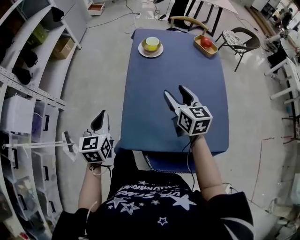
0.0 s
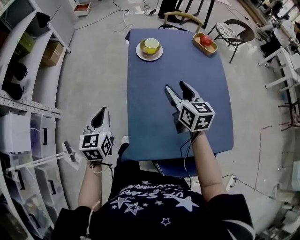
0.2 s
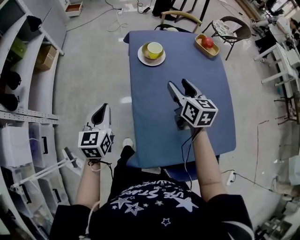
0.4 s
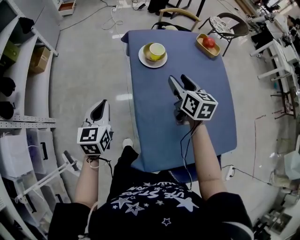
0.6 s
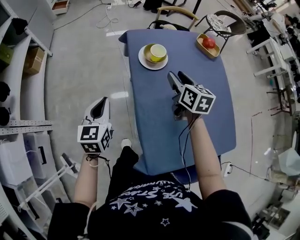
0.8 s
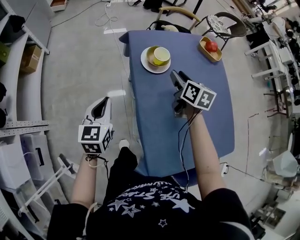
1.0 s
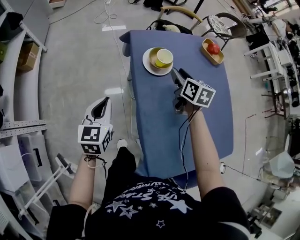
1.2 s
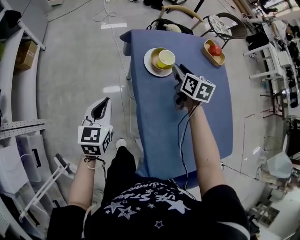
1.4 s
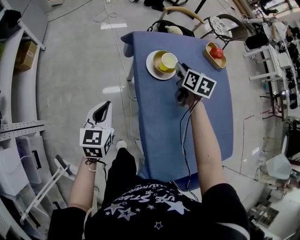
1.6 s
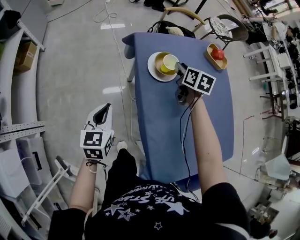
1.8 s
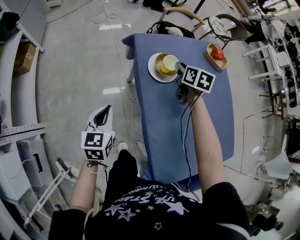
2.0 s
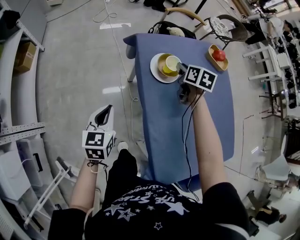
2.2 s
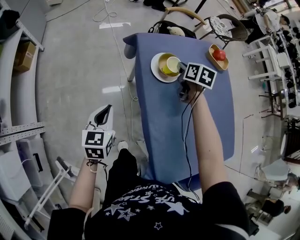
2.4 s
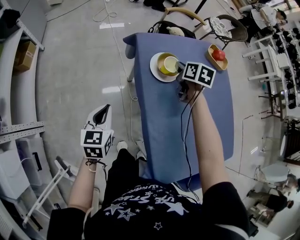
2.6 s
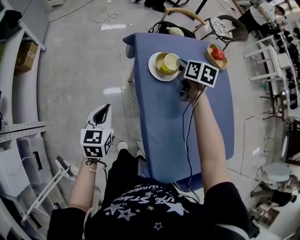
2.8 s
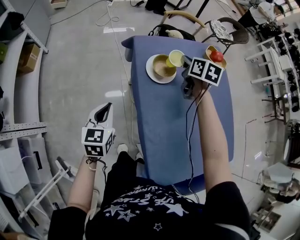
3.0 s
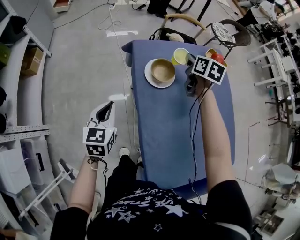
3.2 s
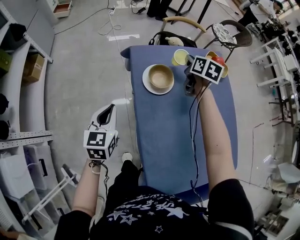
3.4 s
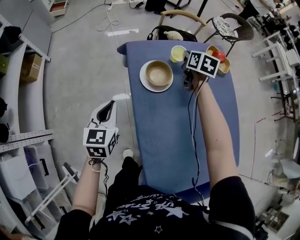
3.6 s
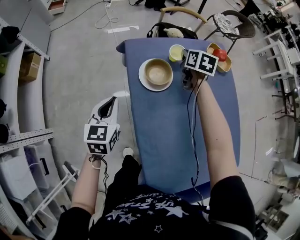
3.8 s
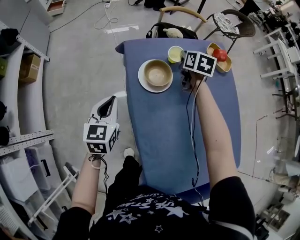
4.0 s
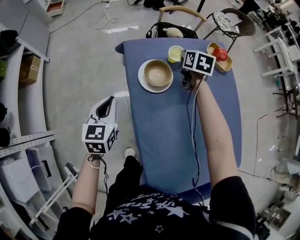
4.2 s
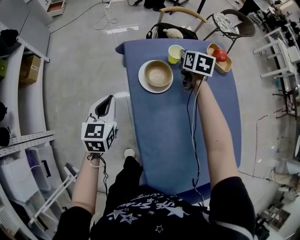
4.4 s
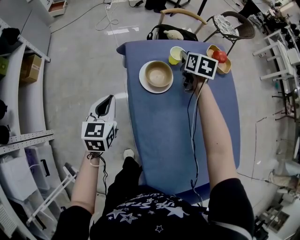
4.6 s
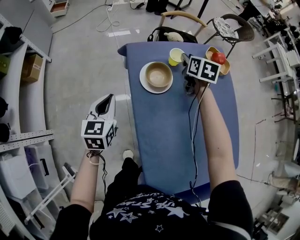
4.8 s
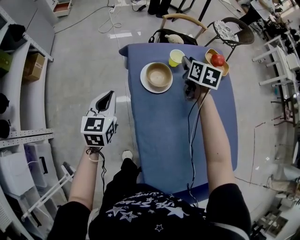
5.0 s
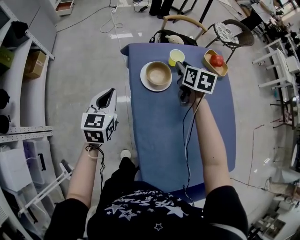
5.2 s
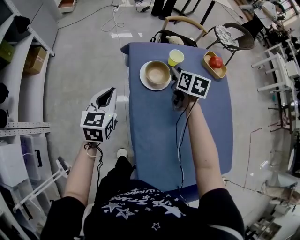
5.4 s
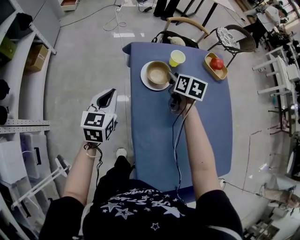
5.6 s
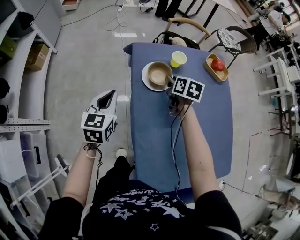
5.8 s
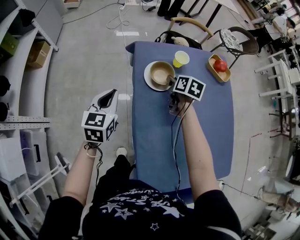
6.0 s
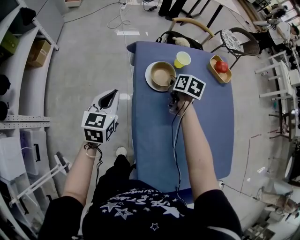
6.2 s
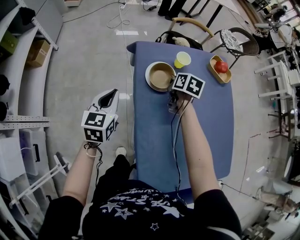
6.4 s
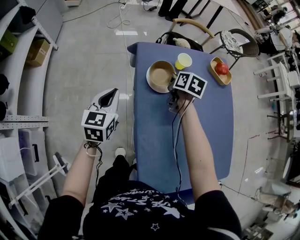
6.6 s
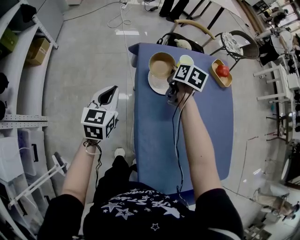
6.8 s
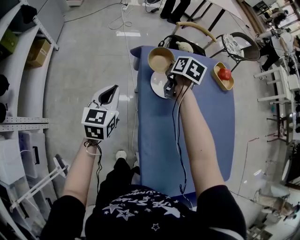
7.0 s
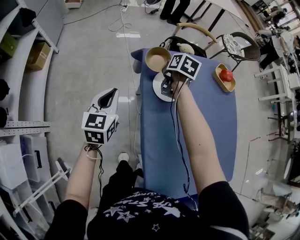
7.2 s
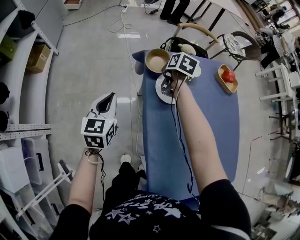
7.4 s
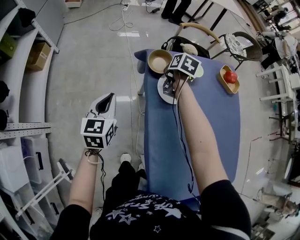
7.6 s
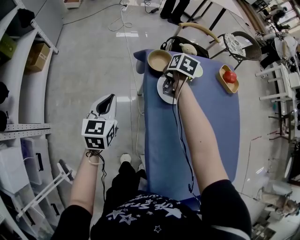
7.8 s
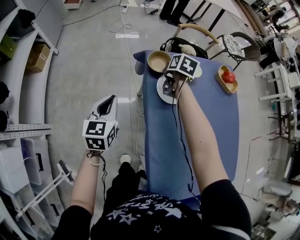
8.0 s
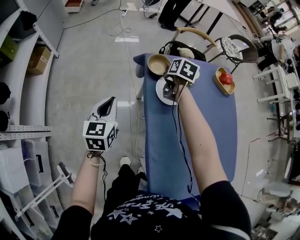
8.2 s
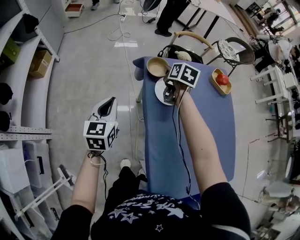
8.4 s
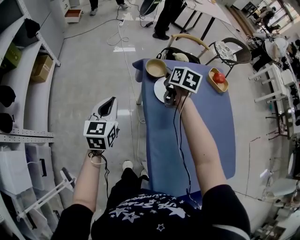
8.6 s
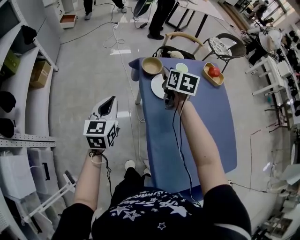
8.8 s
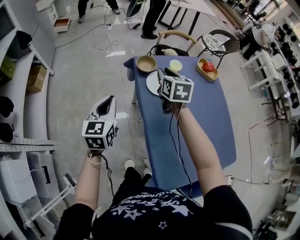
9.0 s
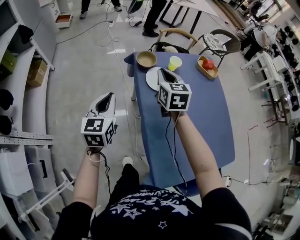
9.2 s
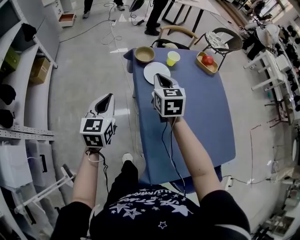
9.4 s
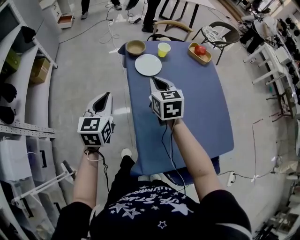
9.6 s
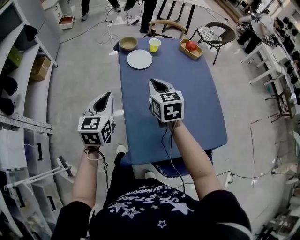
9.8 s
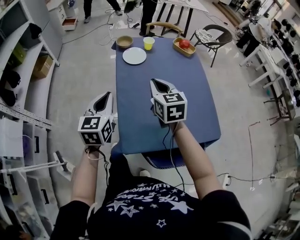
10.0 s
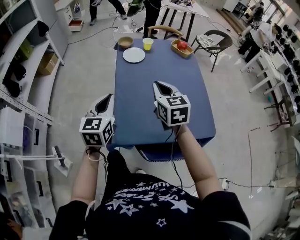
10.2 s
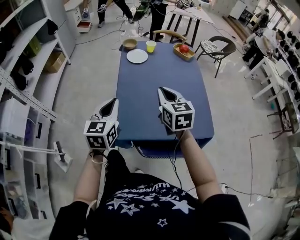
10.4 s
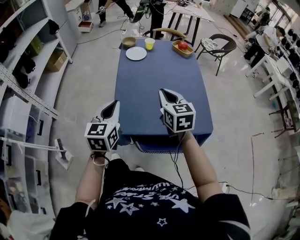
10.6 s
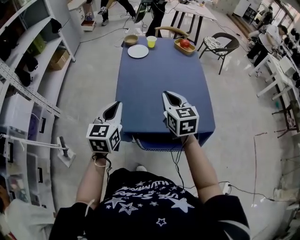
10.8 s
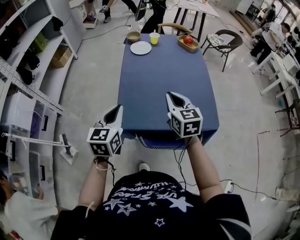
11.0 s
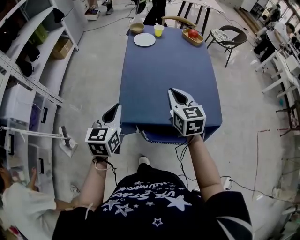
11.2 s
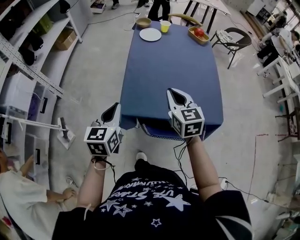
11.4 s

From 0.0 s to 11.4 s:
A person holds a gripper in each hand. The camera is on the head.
From 0.0 s to 1.4 s: The right gripper shifts by some 30 cm, turns by some 30 degrees, and closes its fingers. Meanwhile the left gripper ends up about 30 cm from where it was, and rotates roughly 20 degrees.
From 1.4 s to 2.8 s: The right gripper closes.
From 2.8 s to 4.2 s: The two grippers go some 15 cm forward and to the right.
From 4.2 s to 5.6 s: The right gripper moves backward, some 10 cm, and opens its fingers.
From 5.6 s to 7.2 s: The left gripper goes roughly 5 cm to the left. Meanwhile the right gripper travels forward and to the left by about 15 cm, and closes up.
From 7.2 s to 8.6 s: The left gripper shifts by approximately 5 cm; the right gripper moves upward and backward, approximately 10 cm, and opens.
From 8.6 s to 10.0 s: The left gripper is displaced backward and to the right by about 35 cm. Meanwhile the right gripper goes some 40 cm backward, changes its angle by about 30 degrees, and closes.
From 10.0 s to 11.4 s: The two grippers go approximately 20 cm backward.

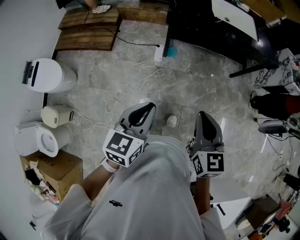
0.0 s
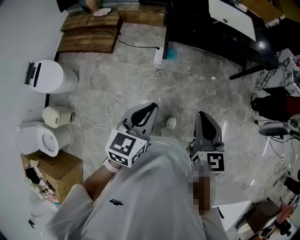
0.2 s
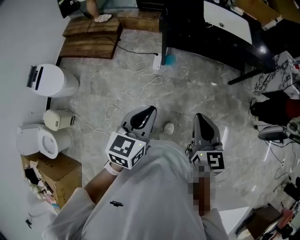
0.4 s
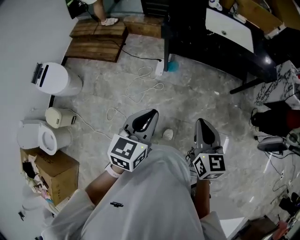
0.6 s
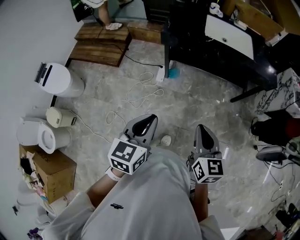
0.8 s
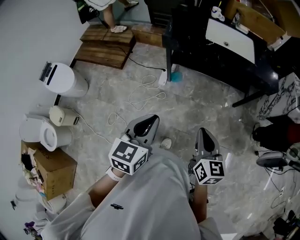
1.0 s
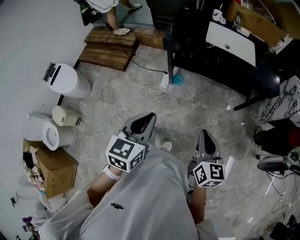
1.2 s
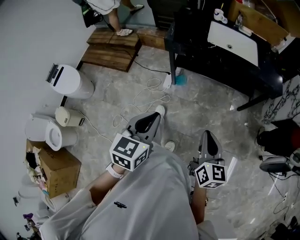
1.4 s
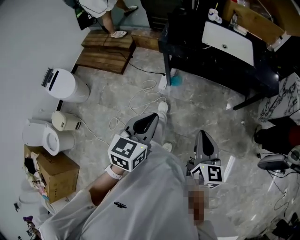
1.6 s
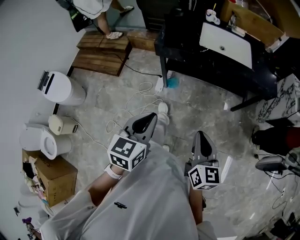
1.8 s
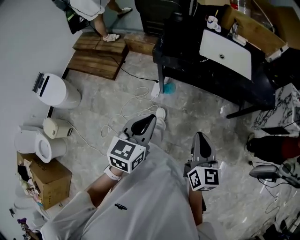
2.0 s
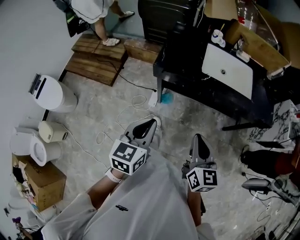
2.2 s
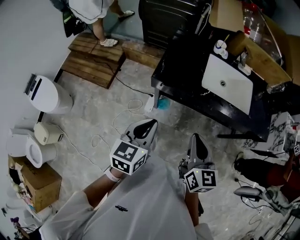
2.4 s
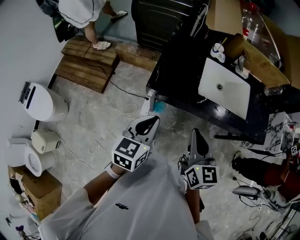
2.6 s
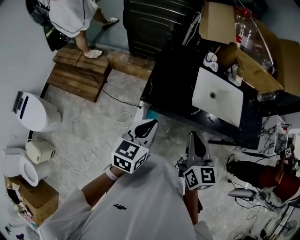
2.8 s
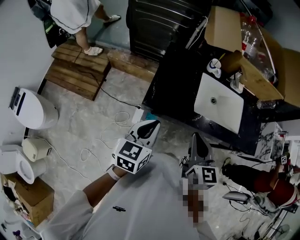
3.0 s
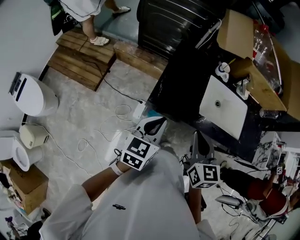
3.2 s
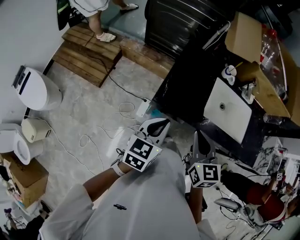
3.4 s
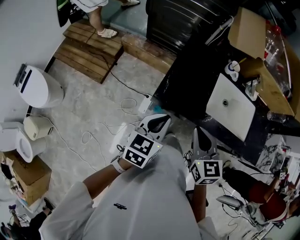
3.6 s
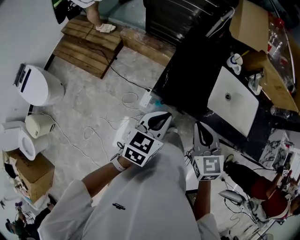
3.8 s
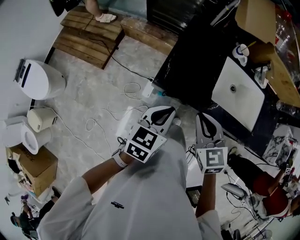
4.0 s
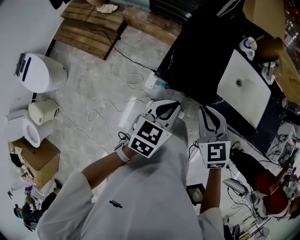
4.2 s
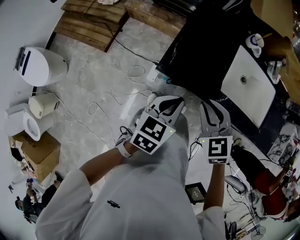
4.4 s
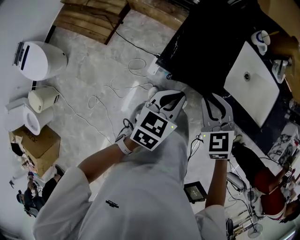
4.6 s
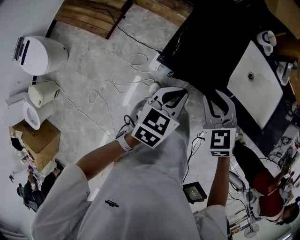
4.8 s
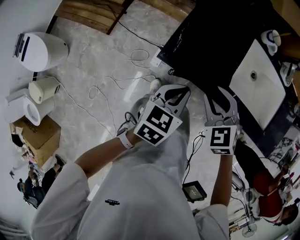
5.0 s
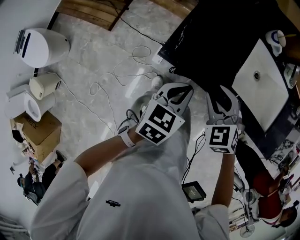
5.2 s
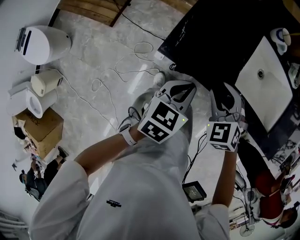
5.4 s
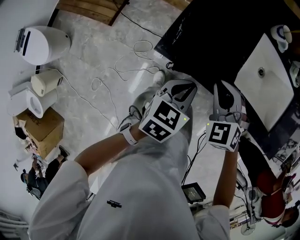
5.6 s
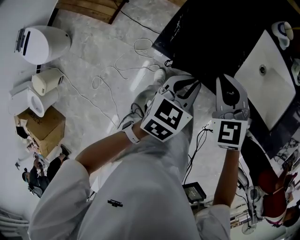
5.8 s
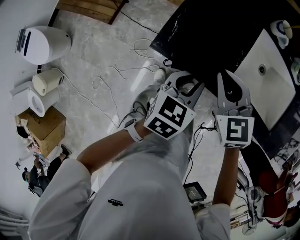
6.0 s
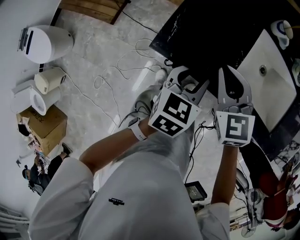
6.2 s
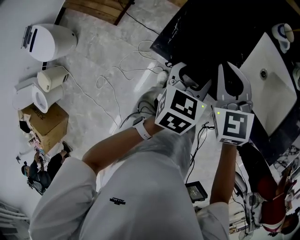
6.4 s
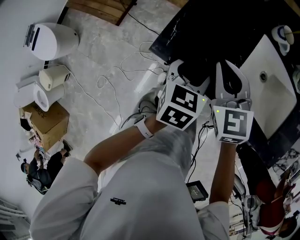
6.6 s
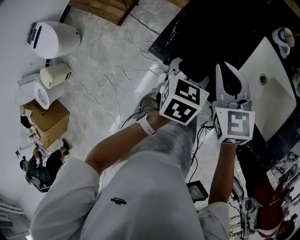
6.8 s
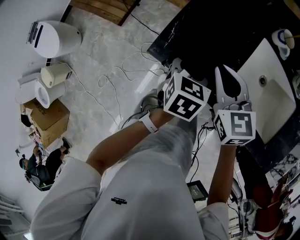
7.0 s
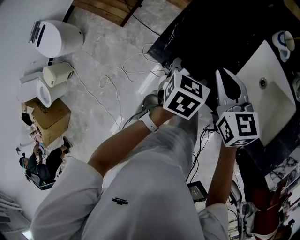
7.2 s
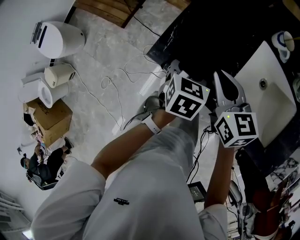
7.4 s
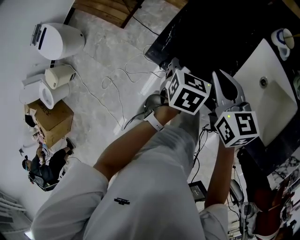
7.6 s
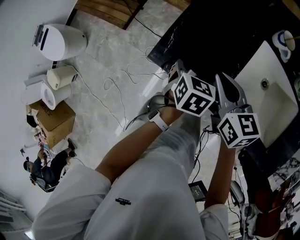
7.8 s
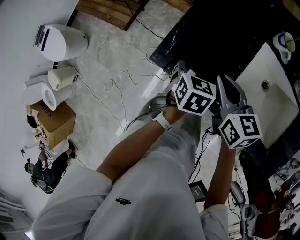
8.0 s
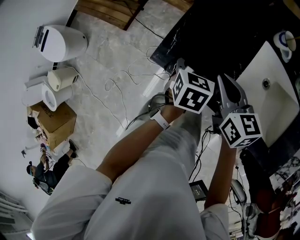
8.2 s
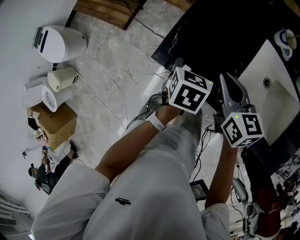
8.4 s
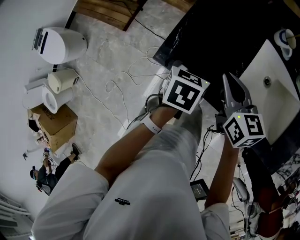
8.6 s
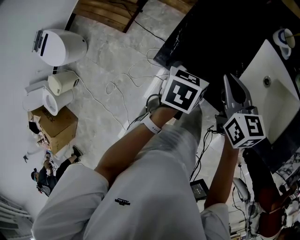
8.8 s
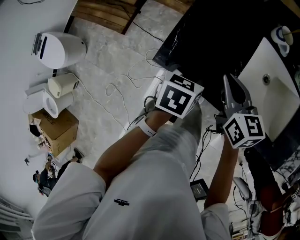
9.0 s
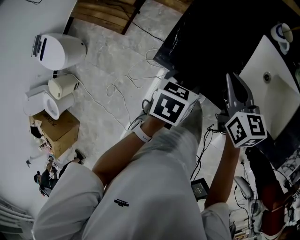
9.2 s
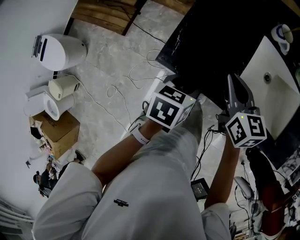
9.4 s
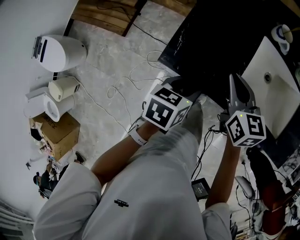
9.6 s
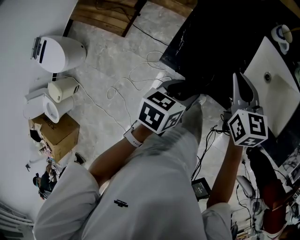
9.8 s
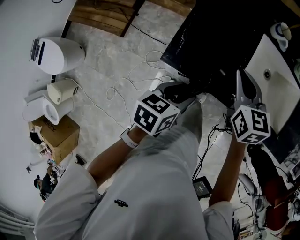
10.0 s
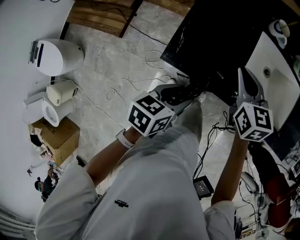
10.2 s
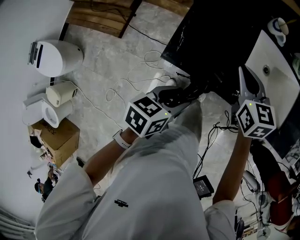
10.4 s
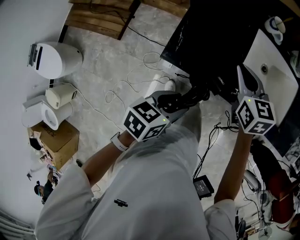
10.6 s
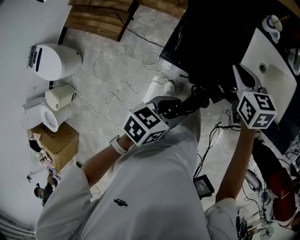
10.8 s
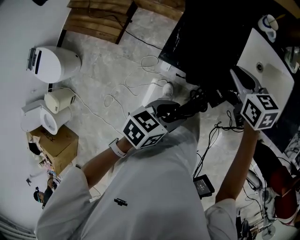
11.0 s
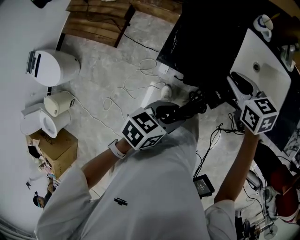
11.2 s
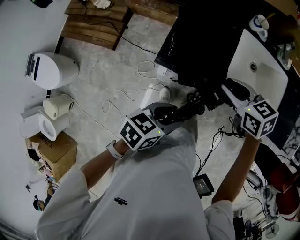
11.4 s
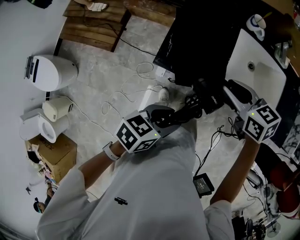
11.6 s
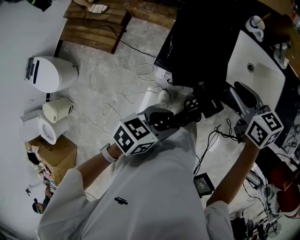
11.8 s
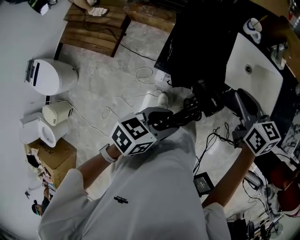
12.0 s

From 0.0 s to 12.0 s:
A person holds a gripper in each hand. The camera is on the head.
From 0.0 s to 1.6 s: Both grippers move to the right, about 20 cm.
From 1.6 s to 3.0 s: The pair of grippers is taken forward, about 50 cm.
From 3.0 s to 4.4 s: The left gripper heads downward, covering some 10 cm. The right gripper shifts approximately 15 cm downward and forward, and rotates approximately 40 degrees.
From 4.4 s to 6.0 s: The left gripper travels downward and to the right by some 10 cm, while the right gripper heads forward and downward, covering some 10 cm.
From 6.0 s to 7.6 s: The right gripper rotates about 30 degrees; the left gripper heads forward and downward, covering roughly 10 cm, swivels about 20 degrees, and opens.
From 7.6 s to 9.0 s: The left gripper closes up.
From 9.0 s to 10.4 s: The left gripper travels backward by some 10 cm, and turns by about 20 degrees.
From 10.4 s to 12.0 s: The right gripper shifts by about 10 cm. The left gripper shifts approximately 10 cm upward.
